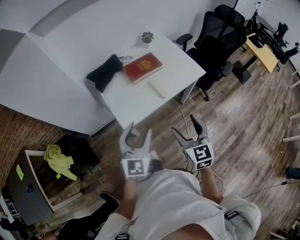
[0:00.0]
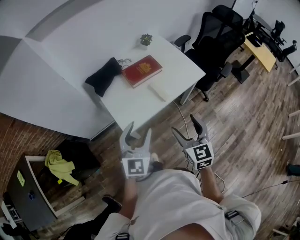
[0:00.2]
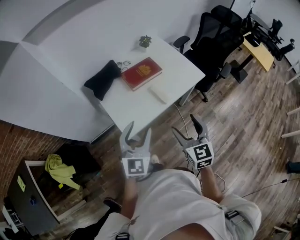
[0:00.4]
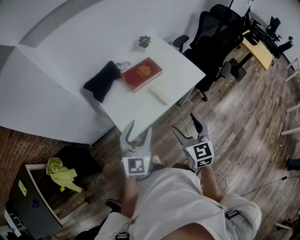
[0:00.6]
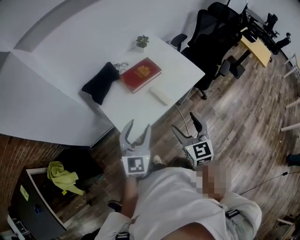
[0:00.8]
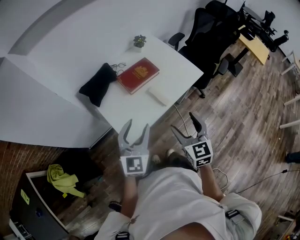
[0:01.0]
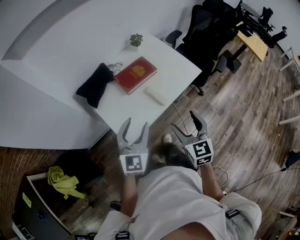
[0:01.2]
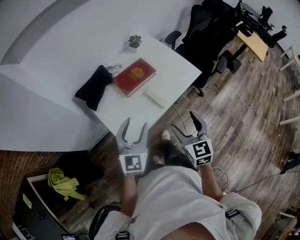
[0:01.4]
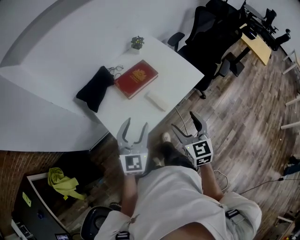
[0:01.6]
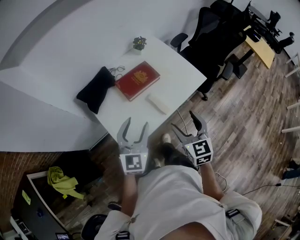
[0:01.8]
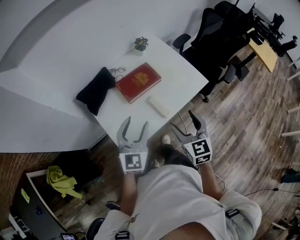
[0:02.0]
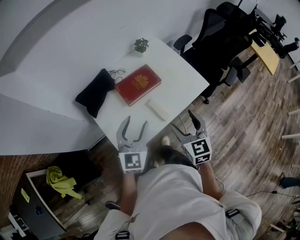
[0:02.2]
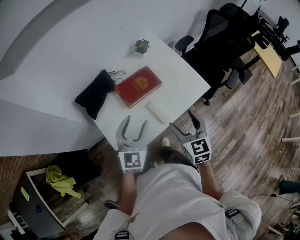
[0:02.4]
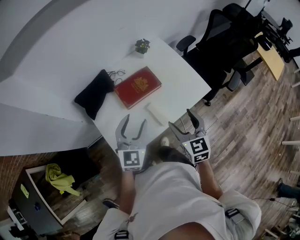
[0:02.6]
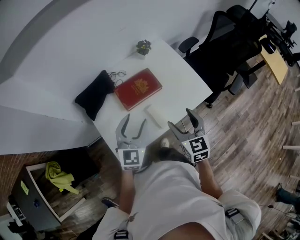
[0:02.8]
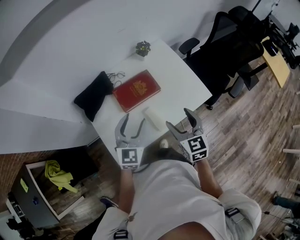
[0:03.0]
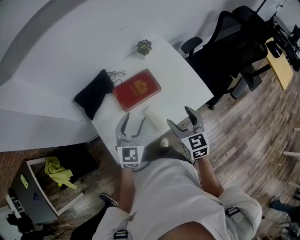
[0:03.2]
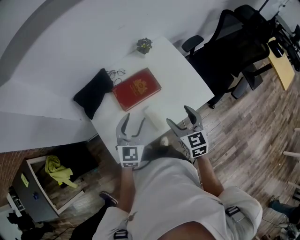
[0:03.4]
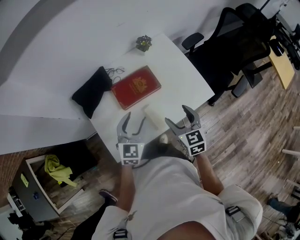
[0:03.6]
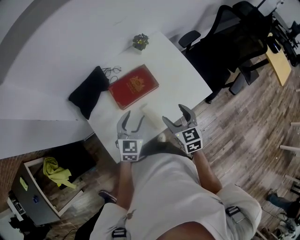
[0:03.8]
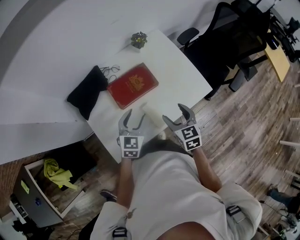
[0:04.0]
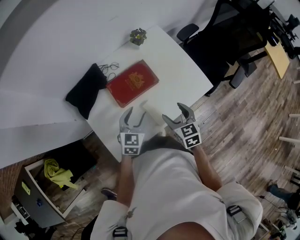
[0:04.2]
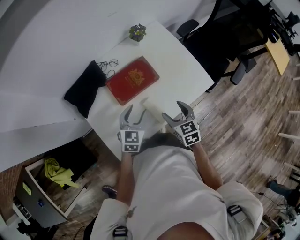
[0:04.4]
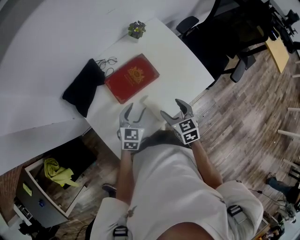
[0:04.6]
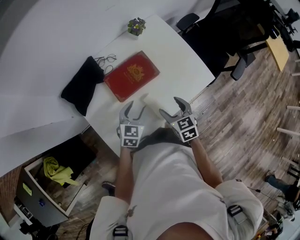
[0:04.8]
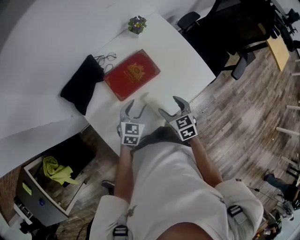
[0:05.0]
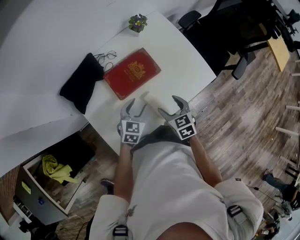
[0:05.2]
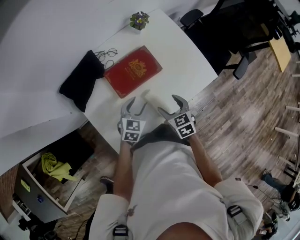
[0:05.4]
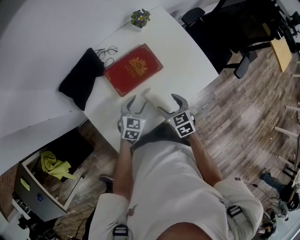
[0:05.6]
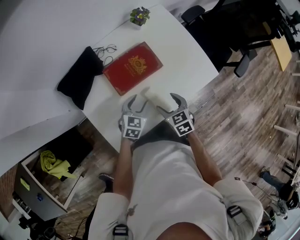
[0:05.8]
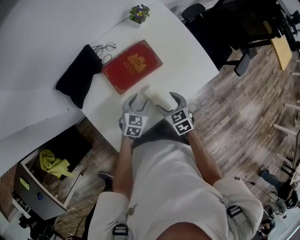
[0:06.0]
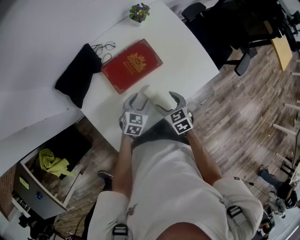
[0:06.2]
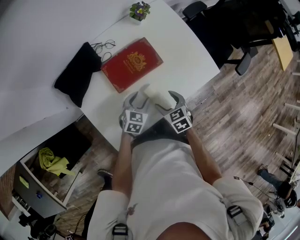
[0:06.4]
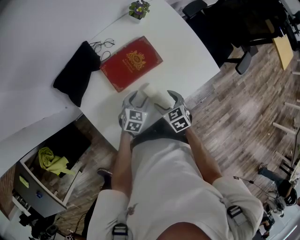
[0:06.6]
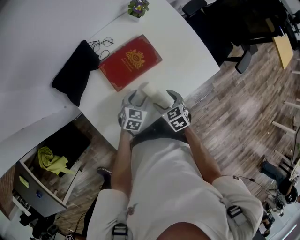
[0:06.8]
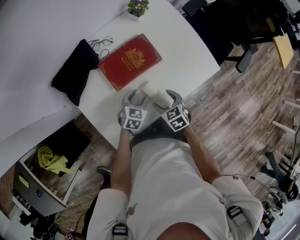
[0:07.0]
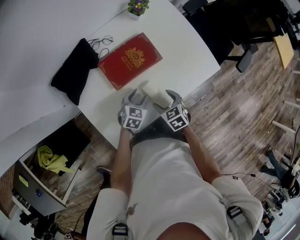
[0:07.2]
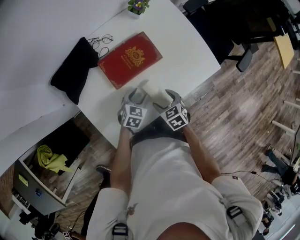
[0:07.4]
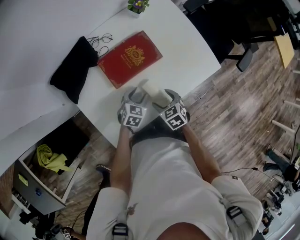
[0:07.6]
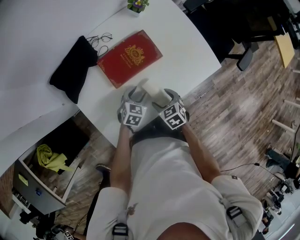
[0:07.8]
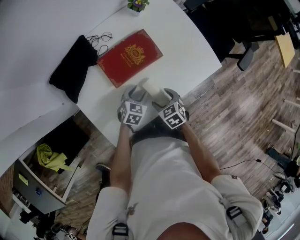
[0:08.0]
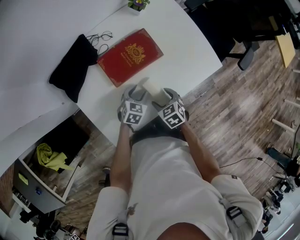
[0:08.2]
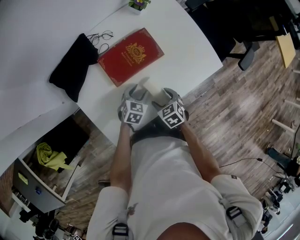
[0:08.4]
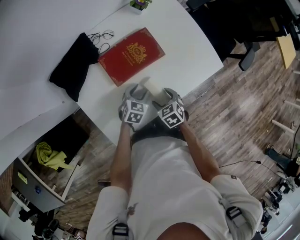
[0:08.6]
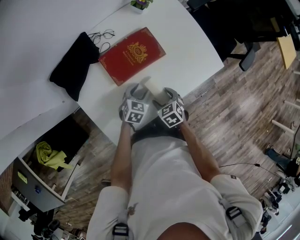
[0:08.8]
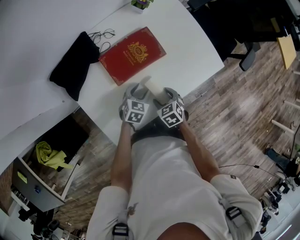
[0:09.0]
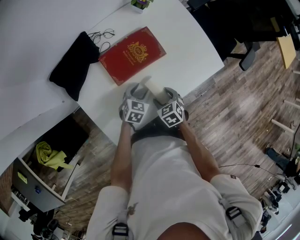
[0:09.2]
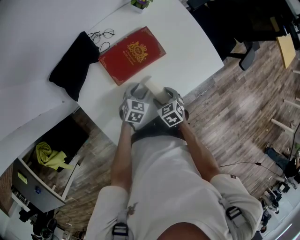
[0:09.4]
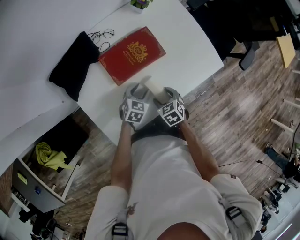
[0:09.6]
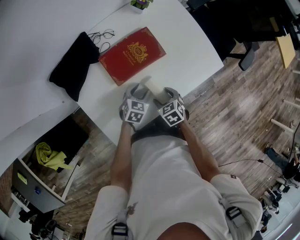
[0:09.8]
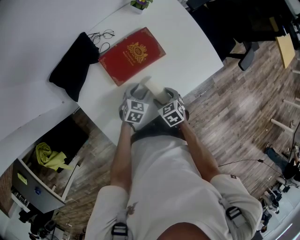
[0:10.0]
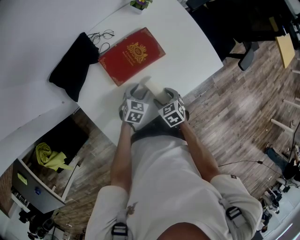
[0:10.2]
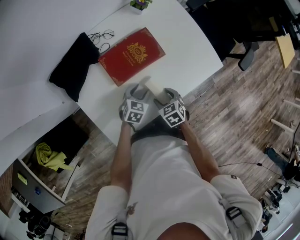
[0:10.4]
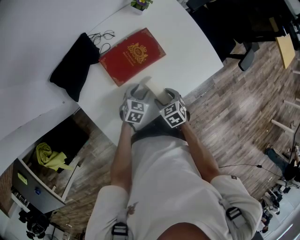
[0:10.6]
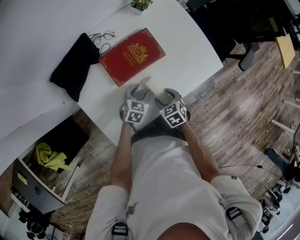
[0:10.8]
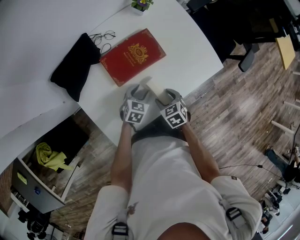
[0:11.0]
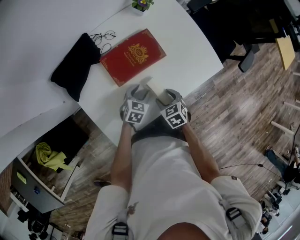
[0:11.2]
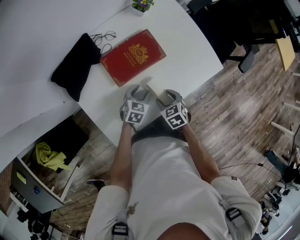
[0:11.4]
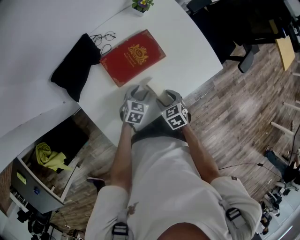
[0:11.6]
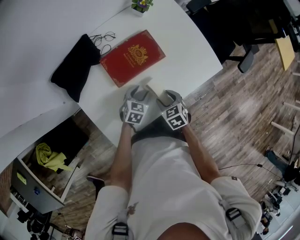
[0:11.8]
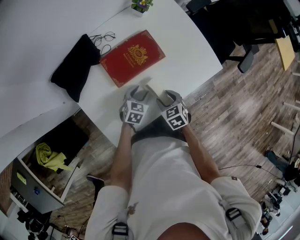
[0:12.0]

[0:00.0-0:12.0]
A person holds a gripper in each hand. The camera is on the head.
0:00.0 to 0:01.6: The grippers both shift forward by approximately 15 cm.
0:01.6 to 0:03.0: Both grippers move forward, approximately 15 cm.
0:03.0 to 0:04.4: Both grippers move downward, approximately 15 cm.
0:04.4 to 0:06.0: The grippers both shift downward by roughly 10 cm.
0:06.0 to 0:07.6: The grippers both shift downward by about 5 cm.
0:07.6 to 0:09.0: There are only small adjustments of the grippers.
0:09.0 to 0:10.4: Both grippers stay about where they are.
0:10.4 to 0:12.0: The grippers make only small movements.

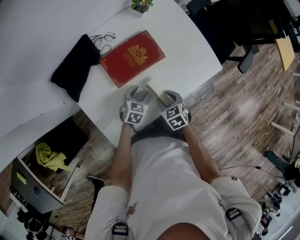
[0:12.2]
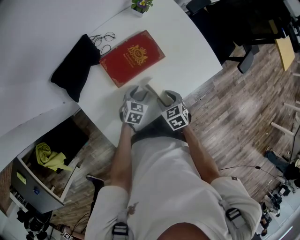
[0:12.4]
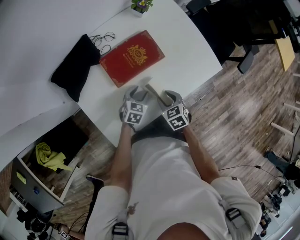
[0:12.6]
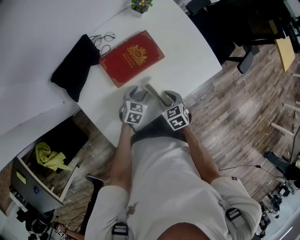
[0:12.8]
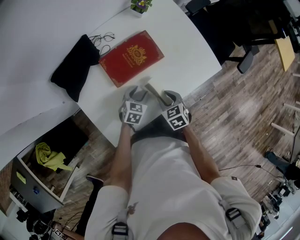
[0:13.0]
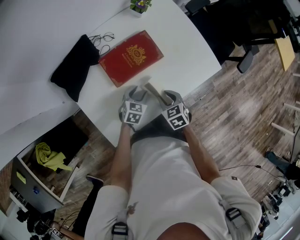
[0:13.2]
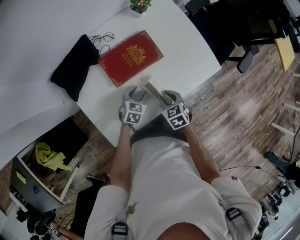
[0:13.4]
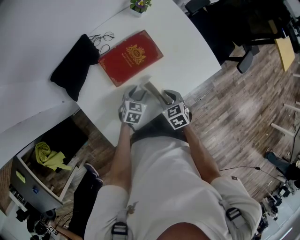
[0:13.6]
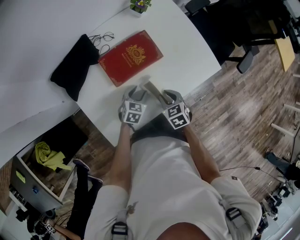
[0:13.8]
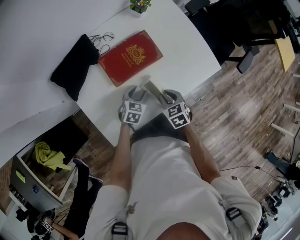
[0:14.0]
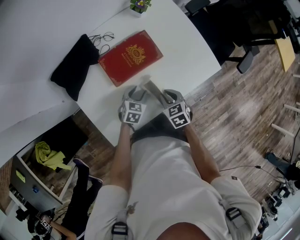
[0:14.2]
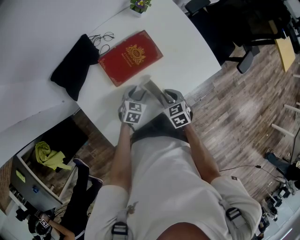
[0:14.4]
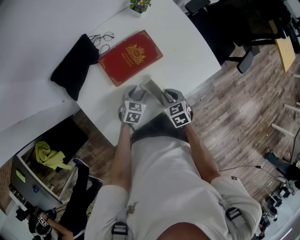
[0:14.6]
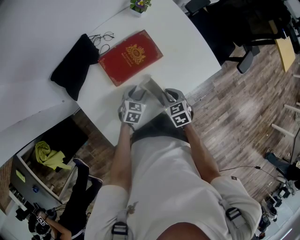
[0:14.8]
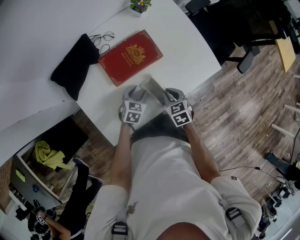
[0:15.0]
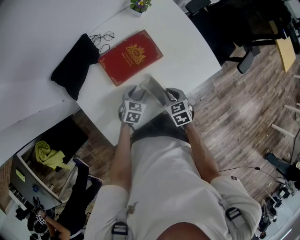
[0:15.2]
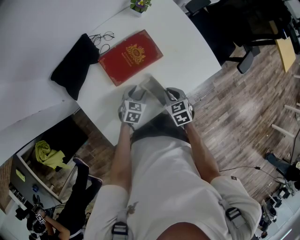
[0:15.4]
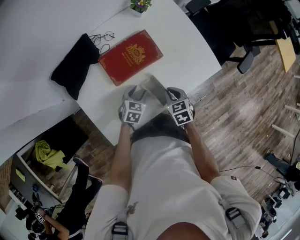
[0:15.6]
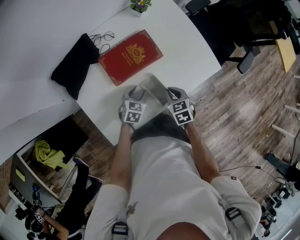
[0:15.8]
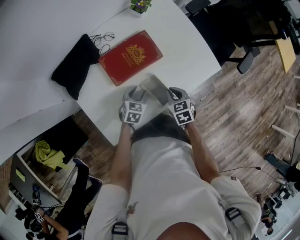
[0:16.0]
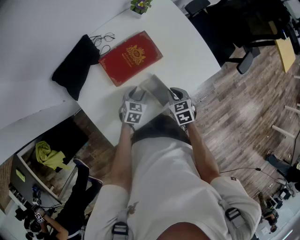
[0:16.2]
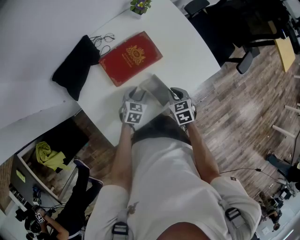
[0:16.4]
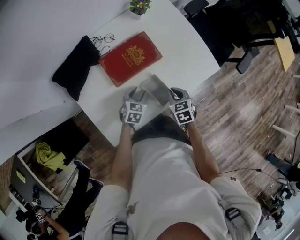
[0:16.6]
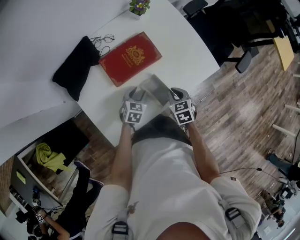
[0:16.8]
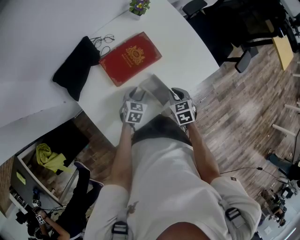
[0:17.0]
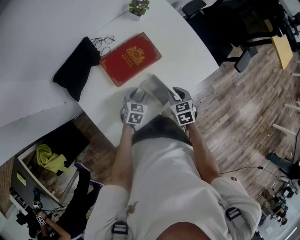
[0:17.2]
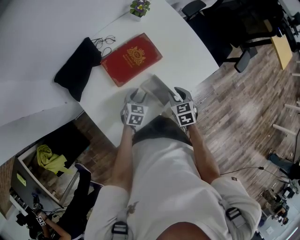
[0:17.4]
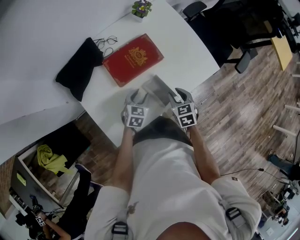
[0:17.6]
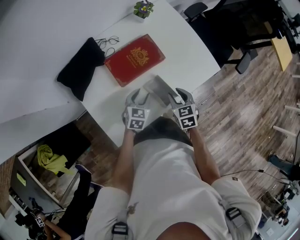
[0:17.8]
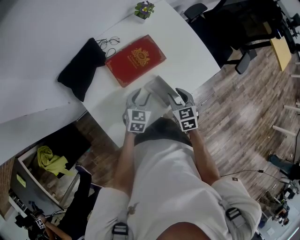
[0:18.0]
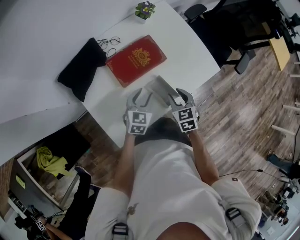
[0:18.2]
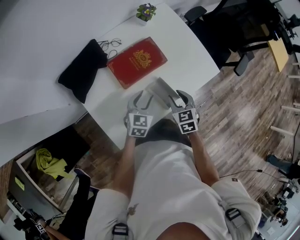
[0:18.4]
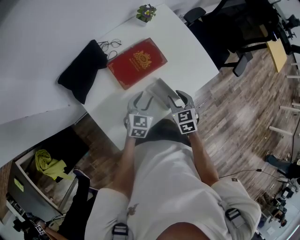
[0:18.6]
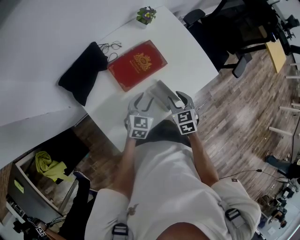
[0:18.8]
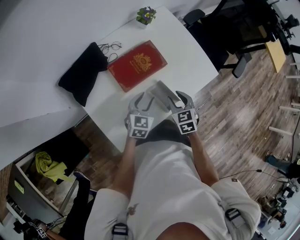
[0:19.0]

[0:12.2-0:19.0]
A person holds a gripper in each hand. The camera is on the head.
0:12.2 to 0:16.2: The grippers move only a little.
0:16.2 to 0:17.6: The grippers make only small movements.
0:17.6 to 0:19.0: The right gripper shifts by roughly 5 cm. Meanwhile the left gripper goes roughly 5 cm upward.

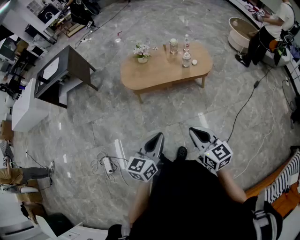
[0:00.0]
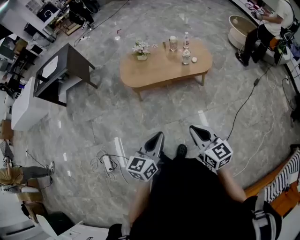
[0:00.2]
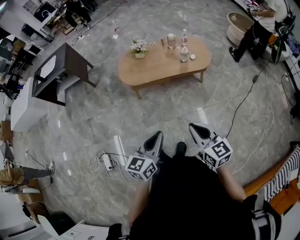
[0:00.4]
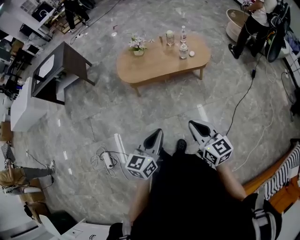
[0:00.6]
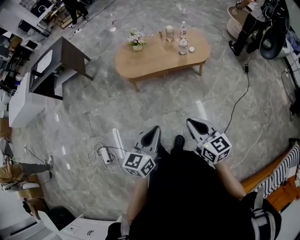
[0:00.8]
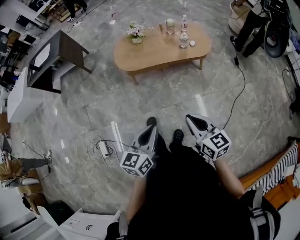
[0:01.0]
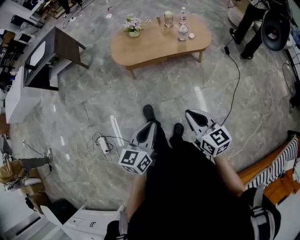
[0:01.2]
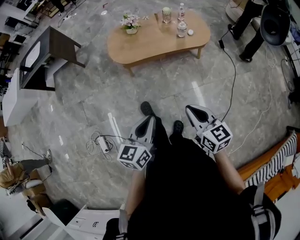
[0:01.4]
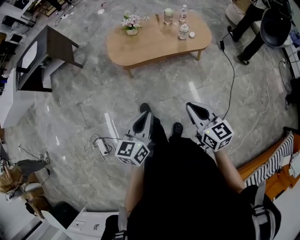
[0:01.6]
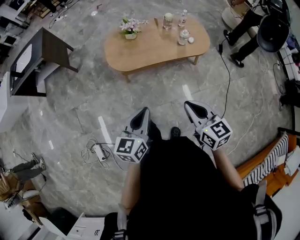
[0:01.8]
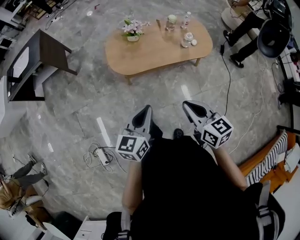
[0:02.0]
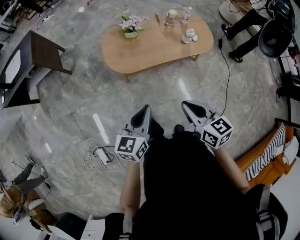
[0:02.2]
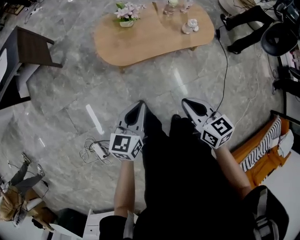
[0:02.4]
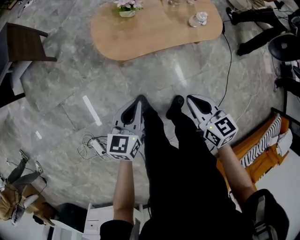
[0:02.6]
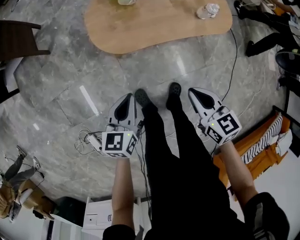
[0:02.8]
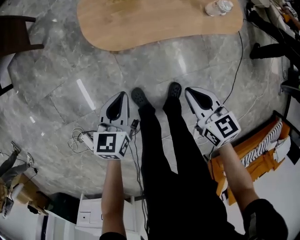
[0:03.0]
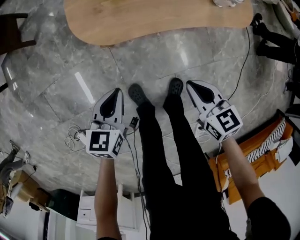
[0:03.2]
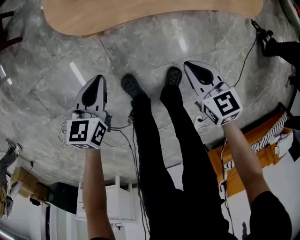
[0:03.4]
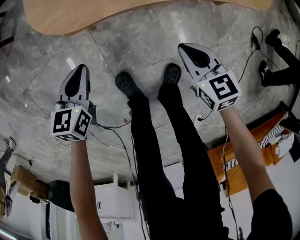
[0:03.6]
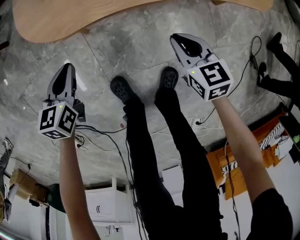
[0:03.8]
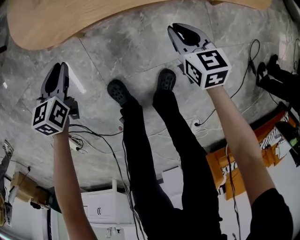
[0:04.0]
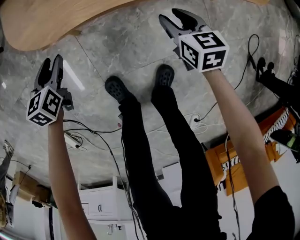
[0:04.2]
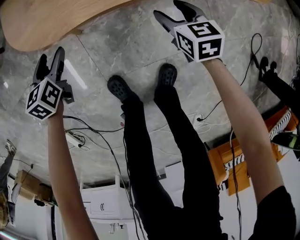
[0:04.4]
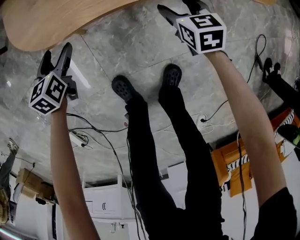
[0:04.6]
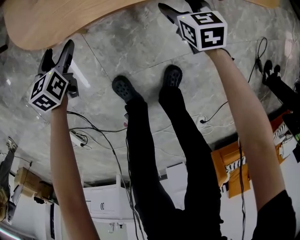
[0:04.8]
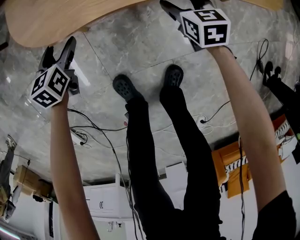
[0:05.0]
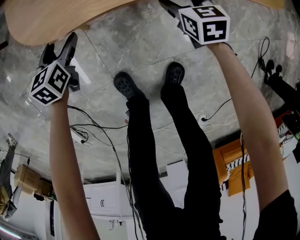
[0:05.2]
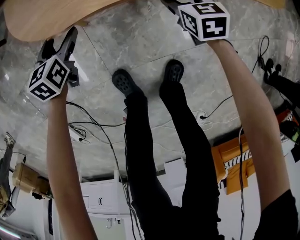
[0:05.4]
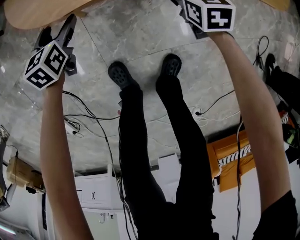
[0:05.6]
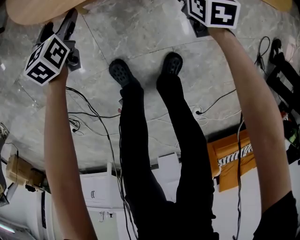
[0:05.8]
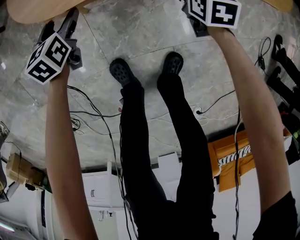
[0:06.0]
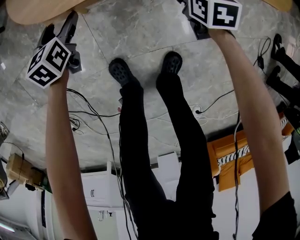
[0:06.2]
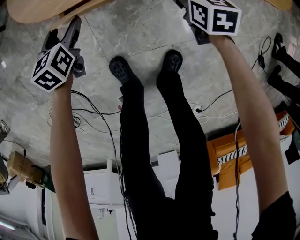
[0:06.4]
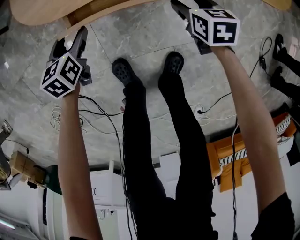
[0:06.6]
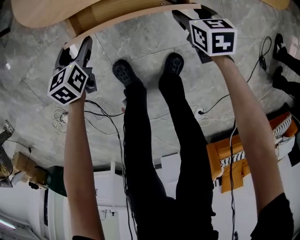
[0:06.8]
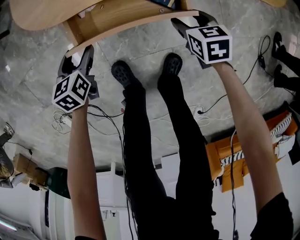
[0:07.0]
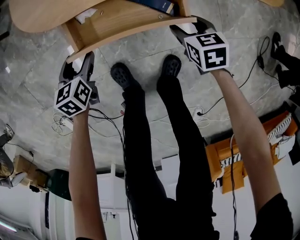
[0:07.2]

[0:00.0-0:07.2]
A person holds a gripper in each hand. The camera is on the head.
0:00.0 to 0:01.4: The left gripper ends up approximately 5 cm from where it was. Meanwhile the right gripper moves about 5 cm.
0:01.4 to 0:02.8: The left gripper shifts some 40 cm forward, to the left and downward, while the right gripper travels forward, downward and to the left by approximately 35 cm.
0:02.8 to 0:04.4: The right gripper goes some 50 cm downward and forward, and opens up; the left gripper heads downward, covering some 40 cm, changes its angle by about 20 degrees, and opens.
0:04.4 to 0:05.8: The right gripper moves some 5 cm.
0:05.8 to 0:07.2: Both grippers travel together backward, about 15 cm.
